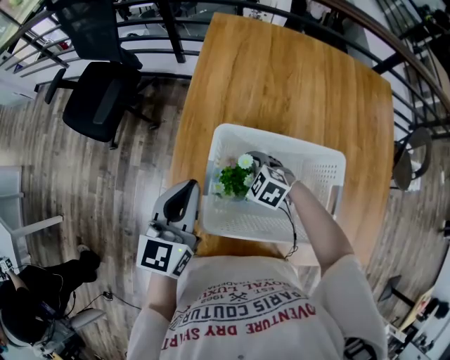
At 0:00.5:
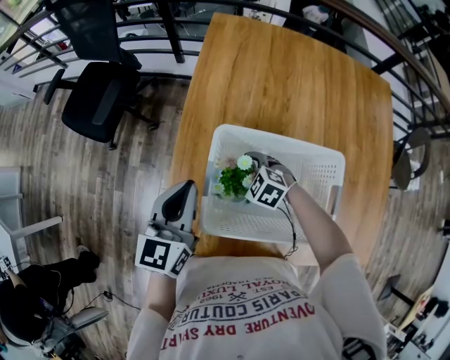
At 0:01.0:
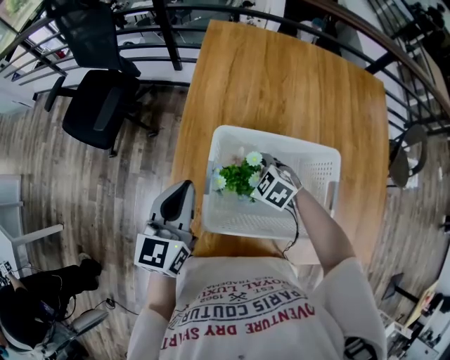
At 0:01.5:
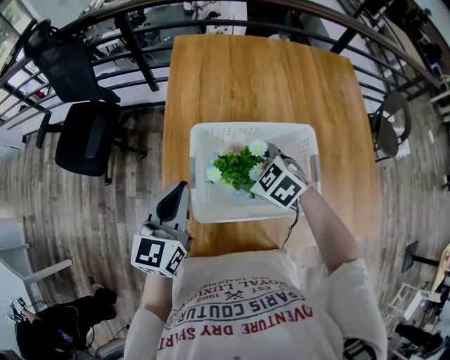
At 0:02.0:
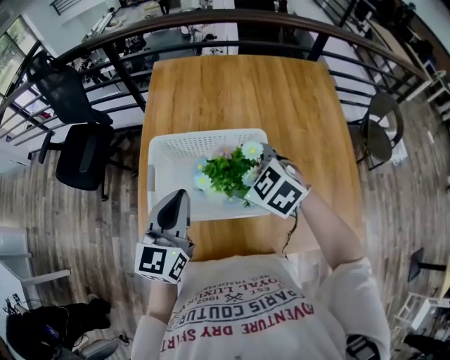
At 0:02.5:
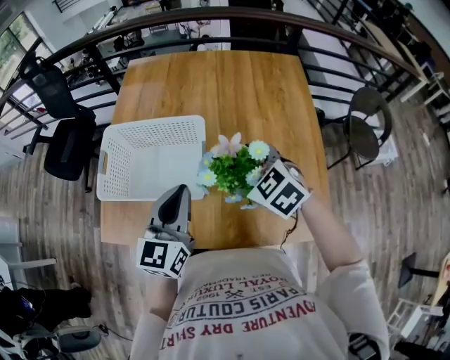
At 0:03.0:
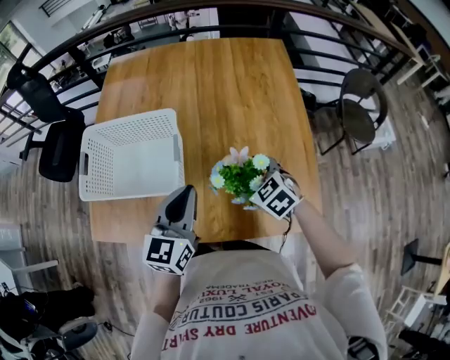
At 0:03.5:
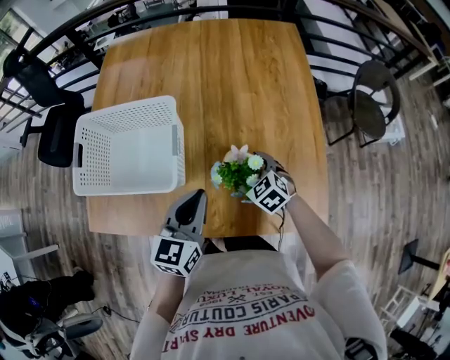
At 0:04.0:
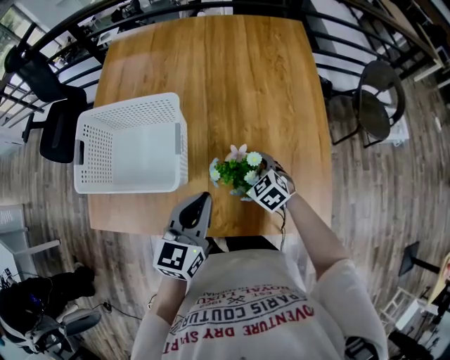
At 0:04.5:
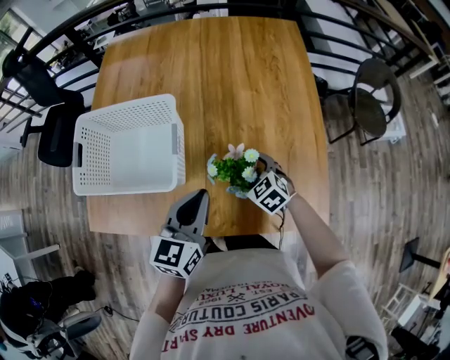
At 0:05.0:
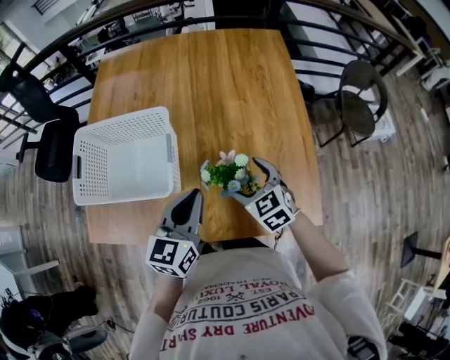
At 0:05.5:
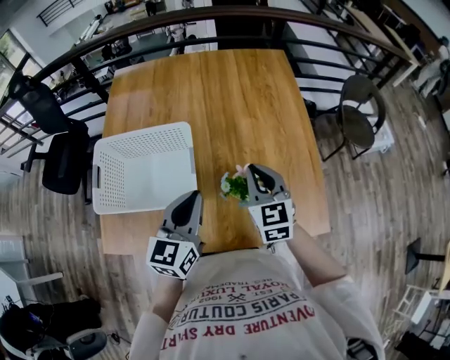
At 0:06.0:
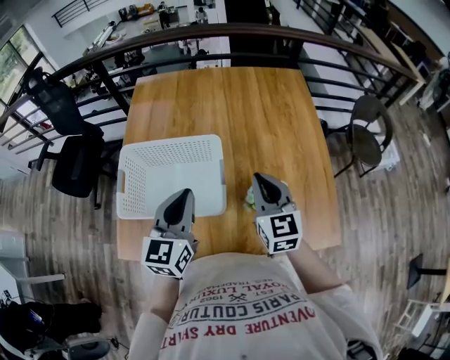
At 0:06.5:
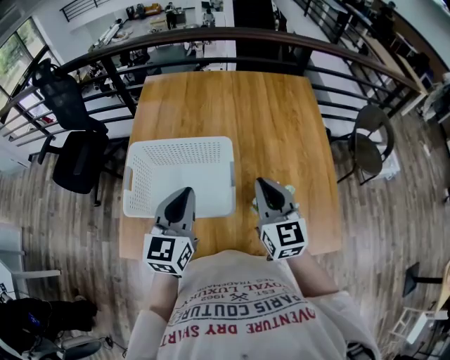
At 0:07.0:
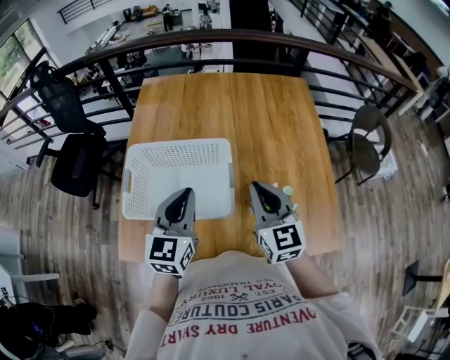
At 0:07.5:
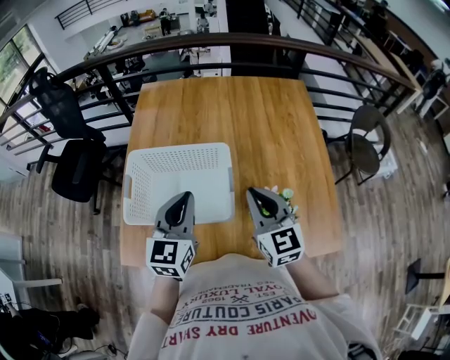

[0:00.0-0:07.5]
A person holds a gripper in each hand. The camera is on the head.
0:00.0 to 0:02.0: The right gripper travels upward, to the right and backward by approximately 30 cm, and rotates roughly 30 degrees. The left gripper shifts roughly 20 cm backward, to the right and upward.
0:02.0 to 0:04.0: The right gripper heads to the right, downward and backward, covering approximately 40 cm, while the left gripper heads to the right, backward and downward, covering roughly 30 cm.
0:04.0 to 0:05.5: The right gripper moves upward, about 25 cm, tips its fingers upward by roughly 30 degrees, and closes. Meanwhile the left gripper moves upward and to the left, about 10 cm.
0:05.5 to 0:07.5: The left gripper moves to the left, about 15 cm. The right gripper moves to the left and upward, approximately 15 cm.

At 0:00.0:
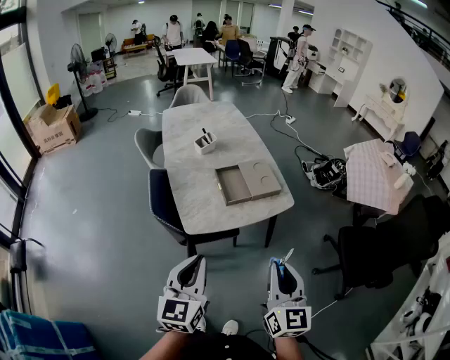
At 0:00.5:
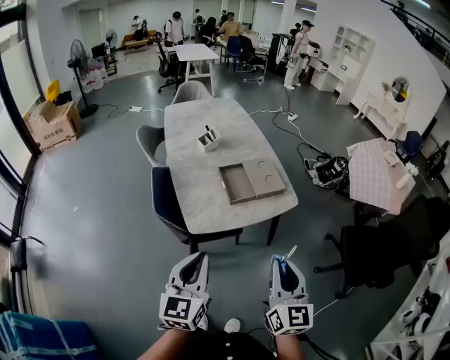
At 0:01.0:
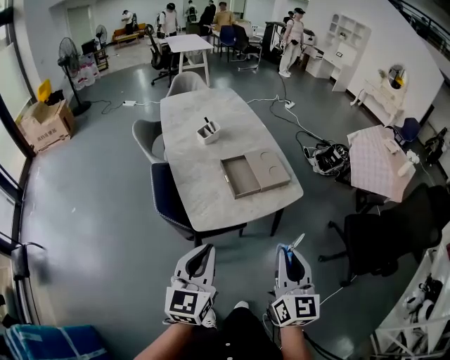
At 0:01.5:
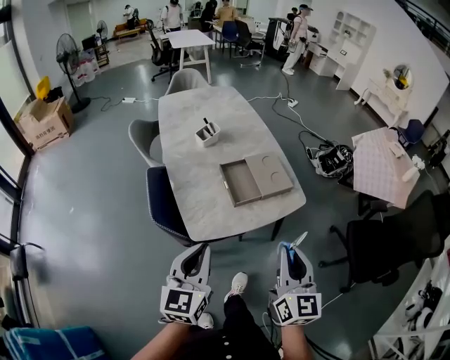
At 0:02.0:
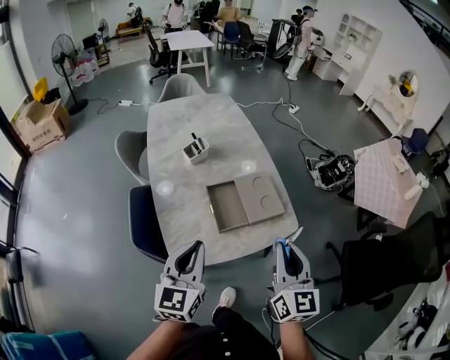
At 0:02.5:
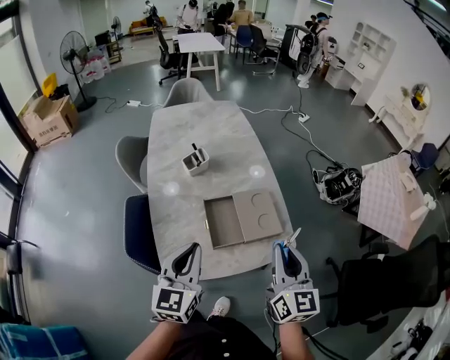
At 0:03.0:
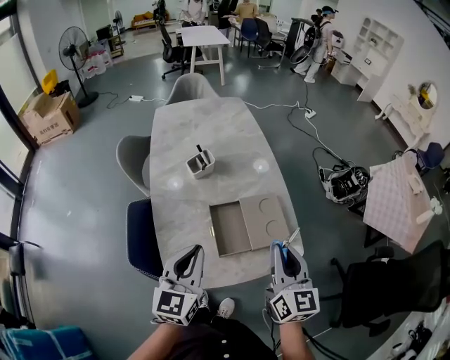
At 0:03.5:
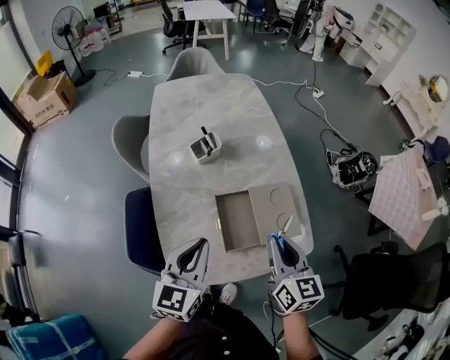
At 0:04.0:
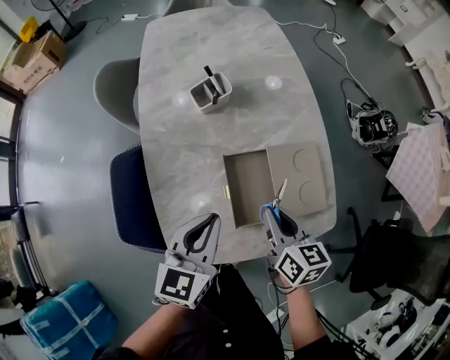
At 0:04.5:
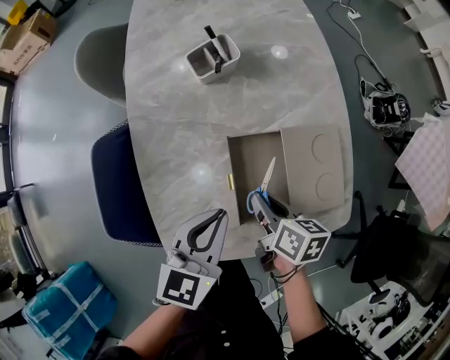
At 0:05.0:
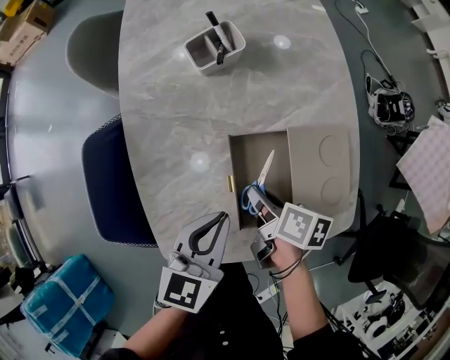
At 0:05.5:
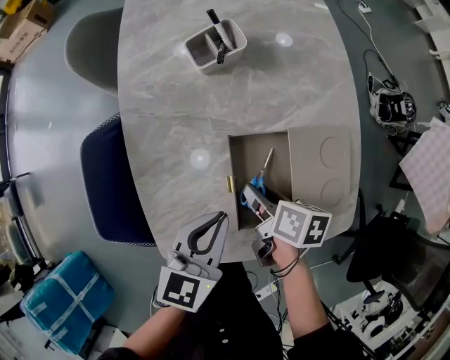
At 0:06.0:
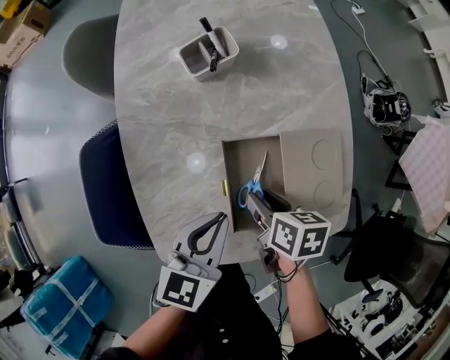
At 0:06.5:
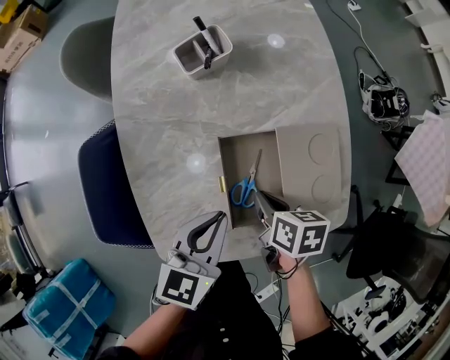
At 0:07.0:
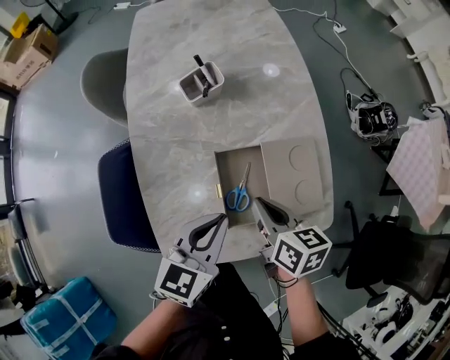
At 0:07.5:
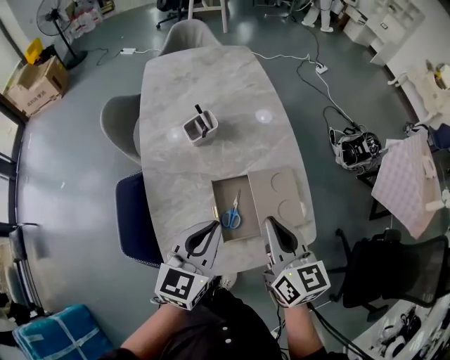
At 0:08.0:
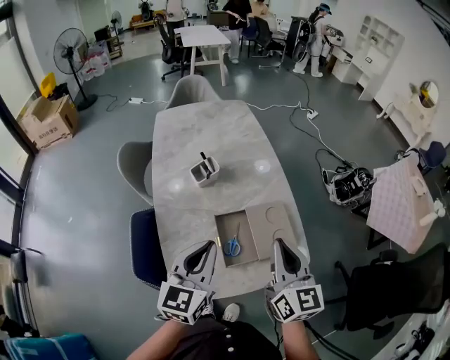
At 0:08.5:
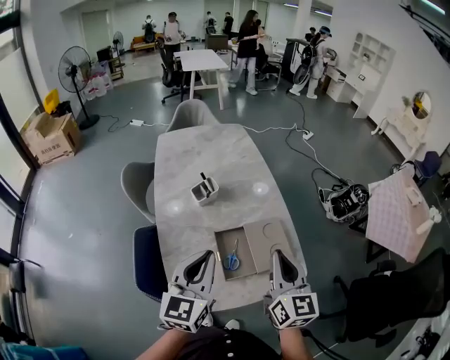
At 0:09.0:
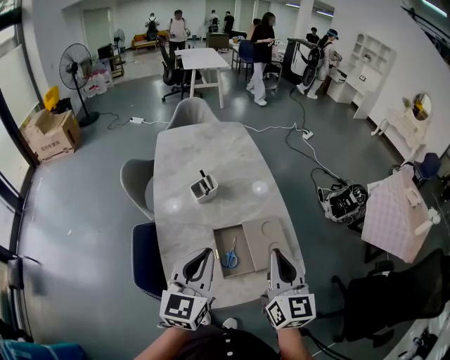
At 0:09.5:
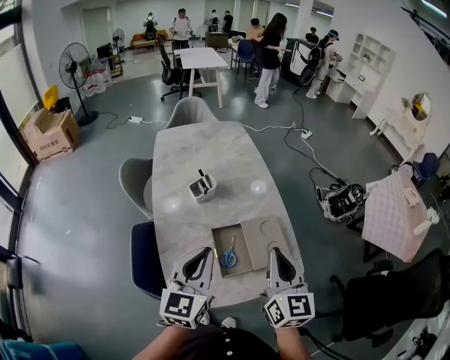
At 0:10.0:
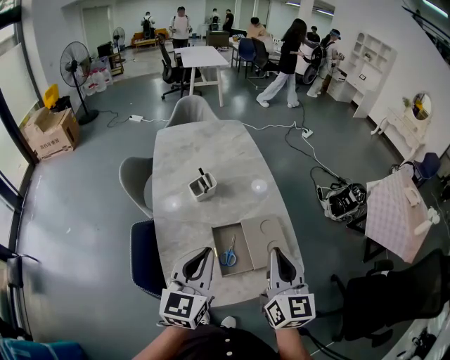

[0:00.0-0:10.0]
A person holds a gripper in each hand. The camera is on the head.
0:00.0 to 0:02.0: Both grippers move forward, about 25 cm.
0:02.0 to 0:04.0: Both grippers travel together forward and downward, some 25 cm. The right gripper swivels roughly 40 degrees.
0:04.0 to 0:06.0: Both grippers travel together downward, about 10 cm. The right gripper turns by about 30 degrees, and opens up.
0:06.0 to 0:08.0: Both grippers move upward, approximately 30 cm. The left gripper changes its angle by roughly 20 degrees. Meanwhile the right gripper tilts its fingers roughly 50 degrees upward, and closes.
0:08.0 to 0:10.0: The grippers move only a little.

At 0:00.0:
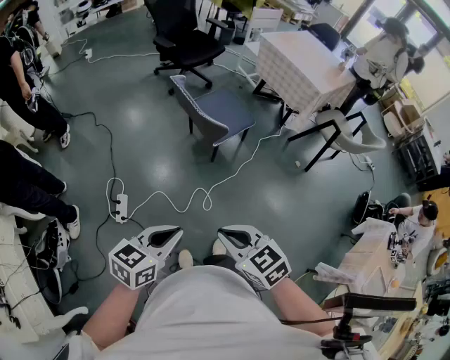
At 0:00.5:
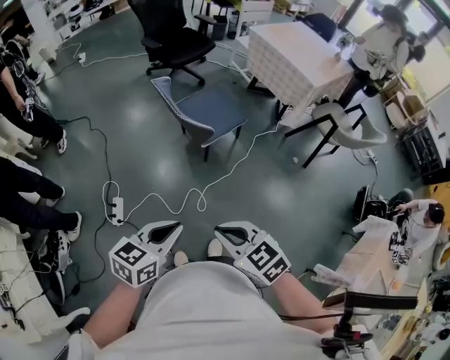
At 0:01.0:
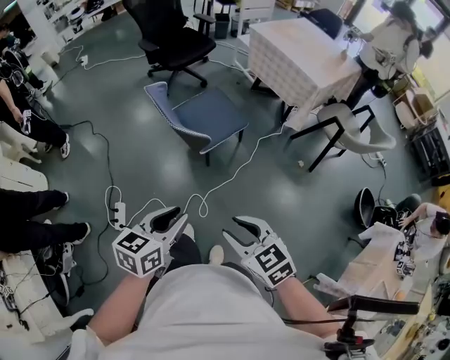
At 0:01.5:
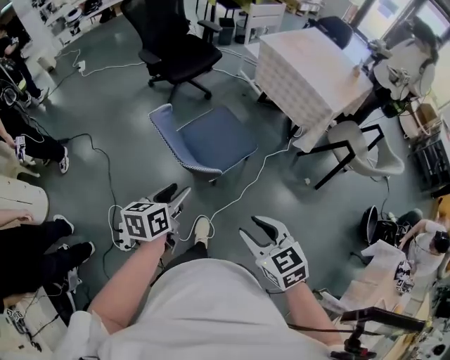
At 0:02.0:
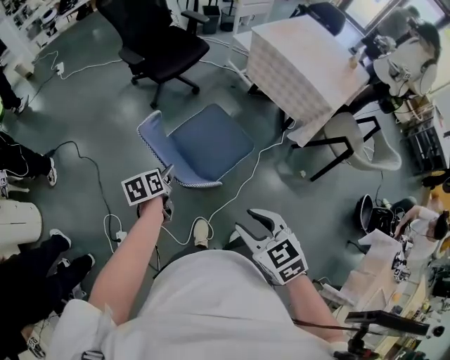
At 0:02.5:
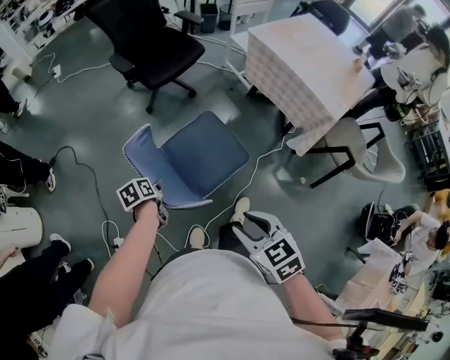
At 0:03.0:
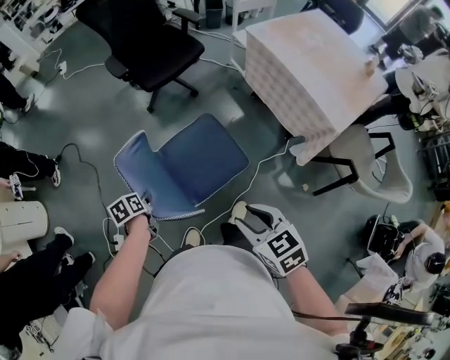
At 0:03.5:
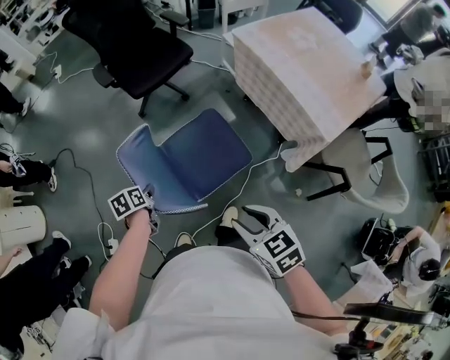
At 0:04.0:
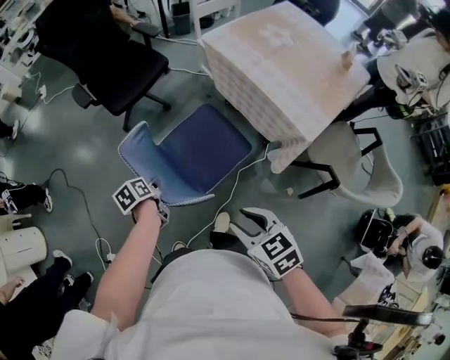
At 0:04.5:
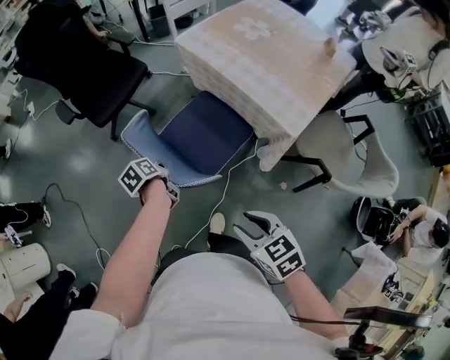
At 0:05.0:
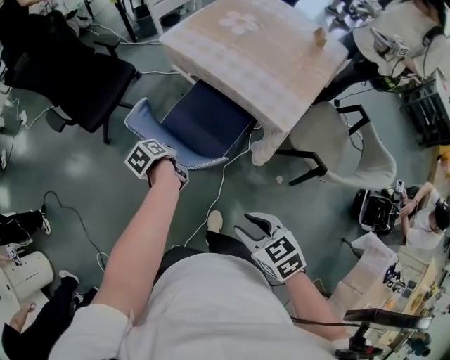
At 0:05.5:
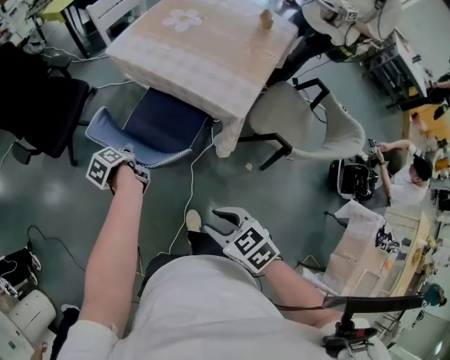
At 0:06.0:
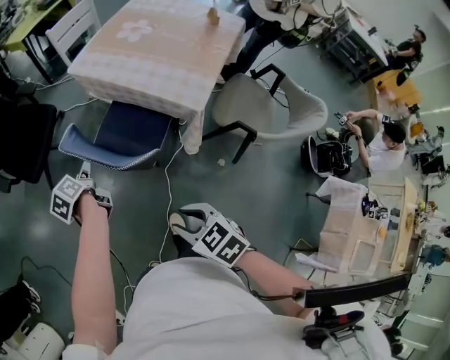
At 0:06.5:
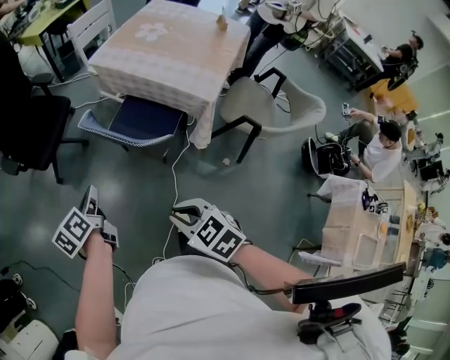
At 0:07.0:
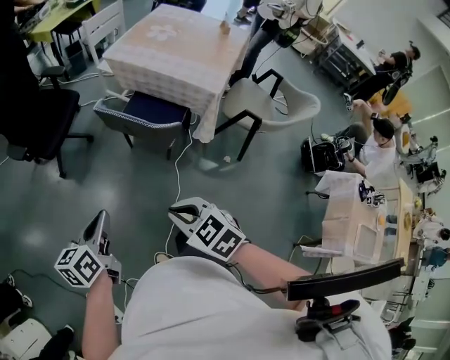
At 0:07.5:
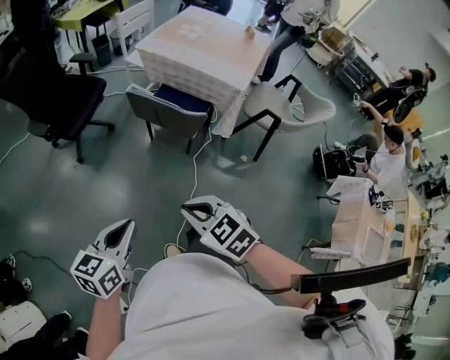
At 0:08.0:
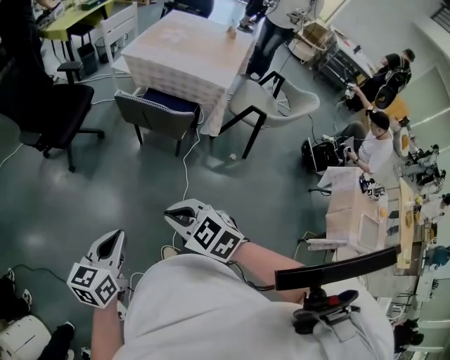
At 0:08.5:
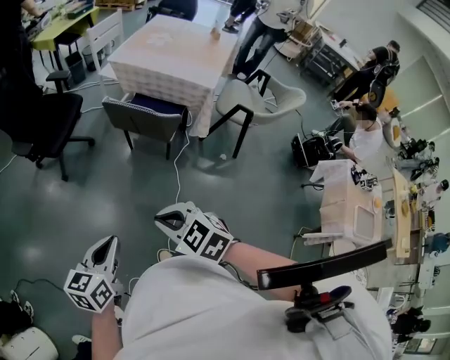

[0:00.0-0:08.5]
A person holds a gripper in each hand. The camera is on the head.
0:00.0 to 0:02.0: The left gripper moves forward, roughly 50 cm, swivels some 40 degrees, and opens; the right gripper shifts about 35 cm forward, and opens its fingers.
0:02.0 to 0:04.0: The grippers both shift to the right and forward by some 30 cm. The left gripper changes its angle by approximately 20 degrees, and closes.
0:04.0 to 0:06.5: The left gripper shifts roughly 15 cm upward, moves approximately 20 cm to the right and comes back, swivels roughly 30 degrees, and opens and closes again. The right gripper goes about 5 cm to the left and backward, and closes.
0:06.5 to 0:08.5: The right gripper travels to the left and backward by about 25 cm. The left gripper travels backward by roughly 30 cm, and rotates roughly 40 degrees.
